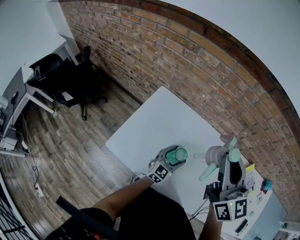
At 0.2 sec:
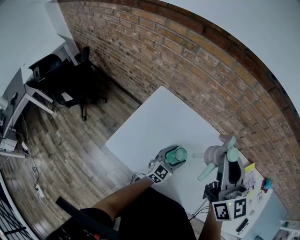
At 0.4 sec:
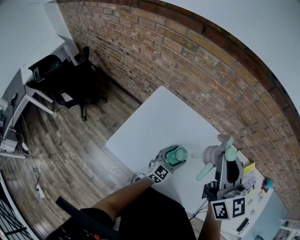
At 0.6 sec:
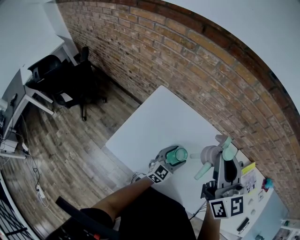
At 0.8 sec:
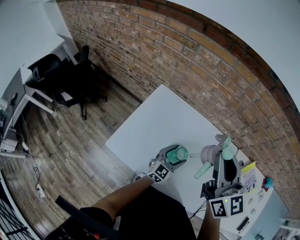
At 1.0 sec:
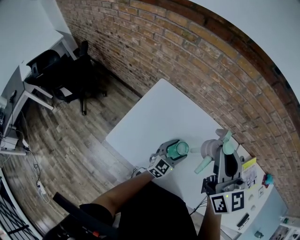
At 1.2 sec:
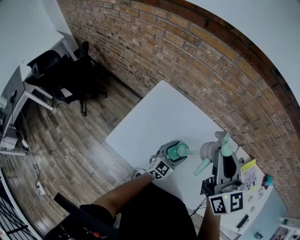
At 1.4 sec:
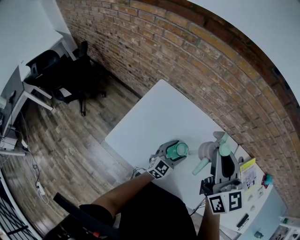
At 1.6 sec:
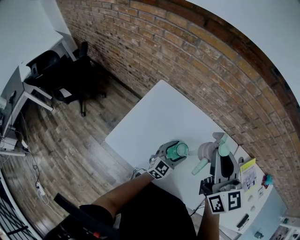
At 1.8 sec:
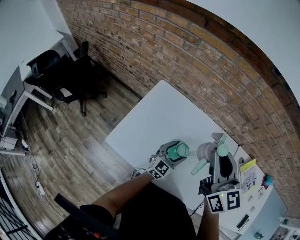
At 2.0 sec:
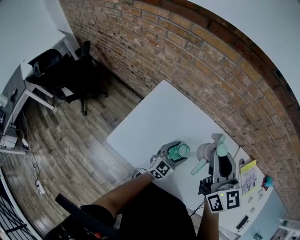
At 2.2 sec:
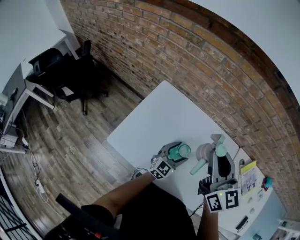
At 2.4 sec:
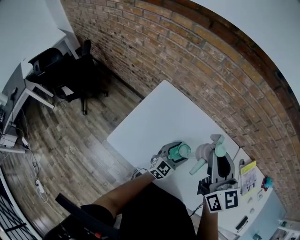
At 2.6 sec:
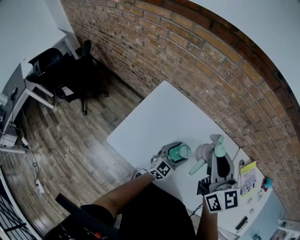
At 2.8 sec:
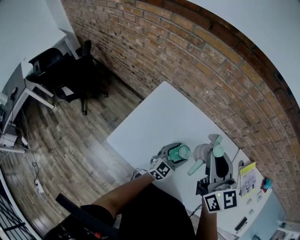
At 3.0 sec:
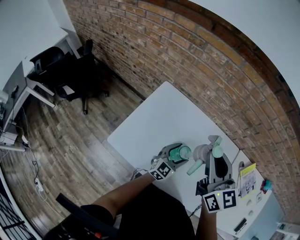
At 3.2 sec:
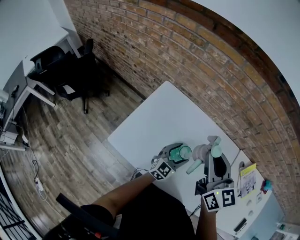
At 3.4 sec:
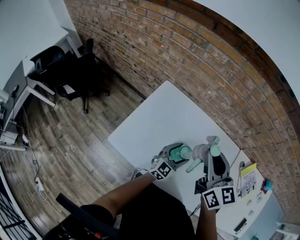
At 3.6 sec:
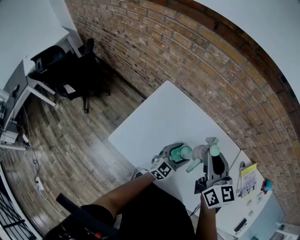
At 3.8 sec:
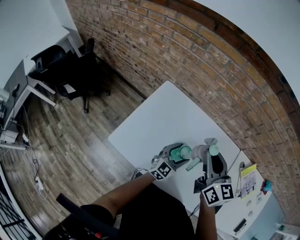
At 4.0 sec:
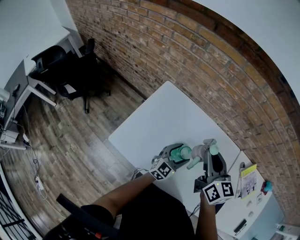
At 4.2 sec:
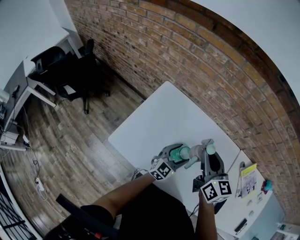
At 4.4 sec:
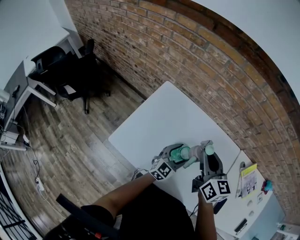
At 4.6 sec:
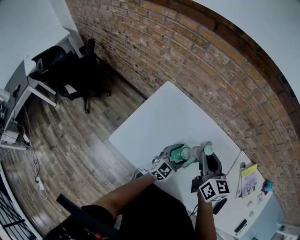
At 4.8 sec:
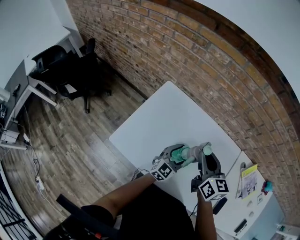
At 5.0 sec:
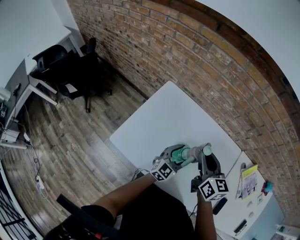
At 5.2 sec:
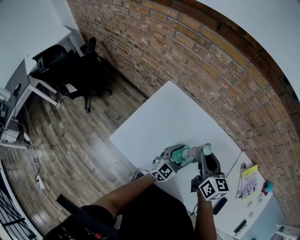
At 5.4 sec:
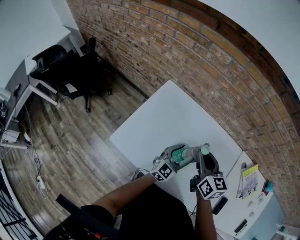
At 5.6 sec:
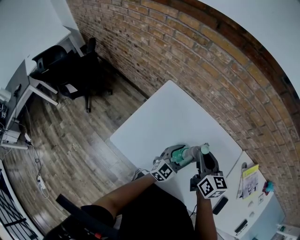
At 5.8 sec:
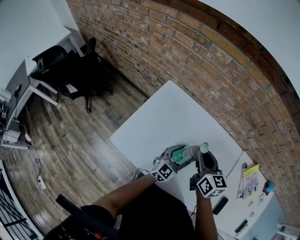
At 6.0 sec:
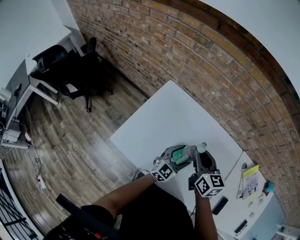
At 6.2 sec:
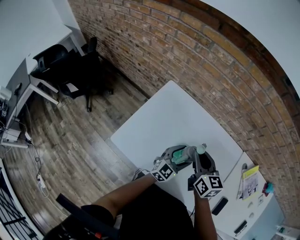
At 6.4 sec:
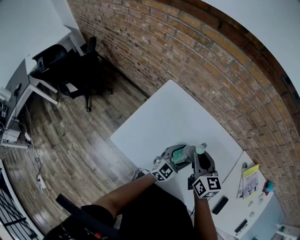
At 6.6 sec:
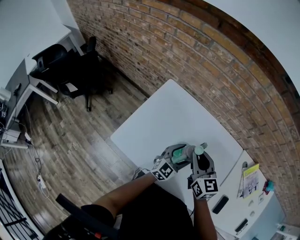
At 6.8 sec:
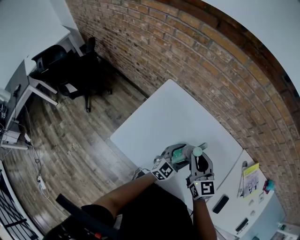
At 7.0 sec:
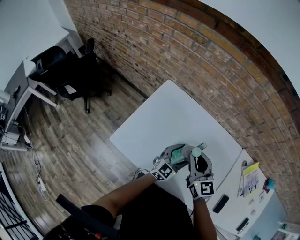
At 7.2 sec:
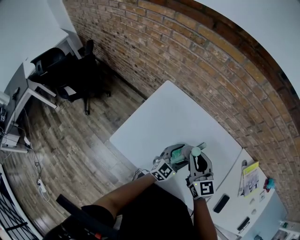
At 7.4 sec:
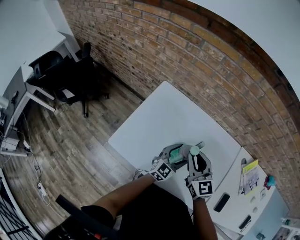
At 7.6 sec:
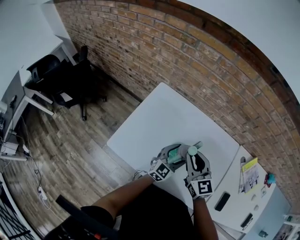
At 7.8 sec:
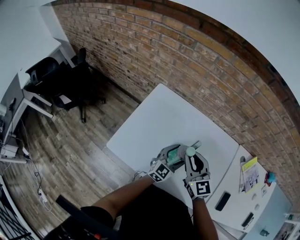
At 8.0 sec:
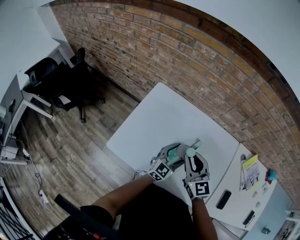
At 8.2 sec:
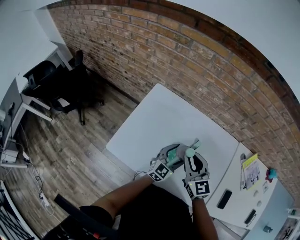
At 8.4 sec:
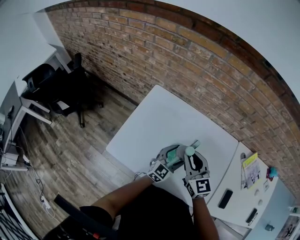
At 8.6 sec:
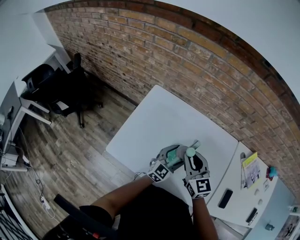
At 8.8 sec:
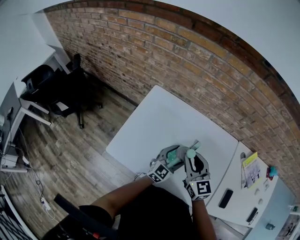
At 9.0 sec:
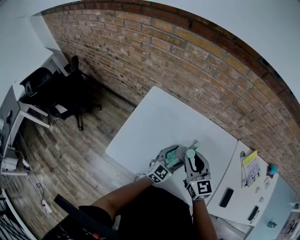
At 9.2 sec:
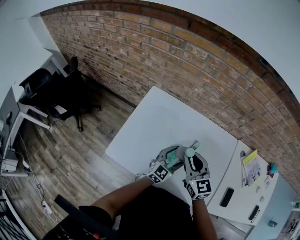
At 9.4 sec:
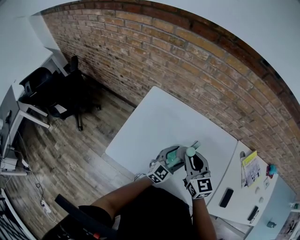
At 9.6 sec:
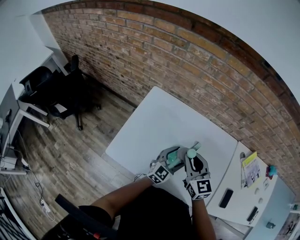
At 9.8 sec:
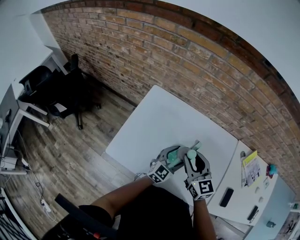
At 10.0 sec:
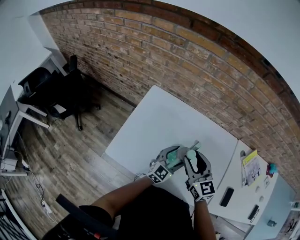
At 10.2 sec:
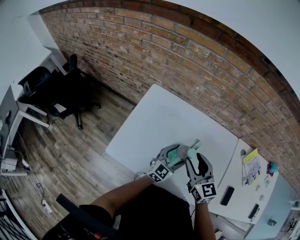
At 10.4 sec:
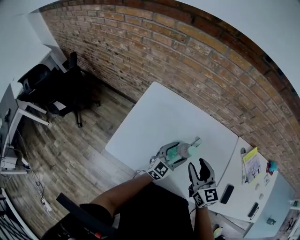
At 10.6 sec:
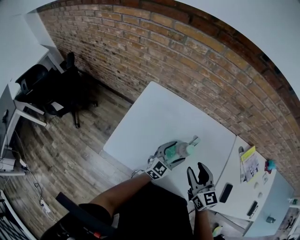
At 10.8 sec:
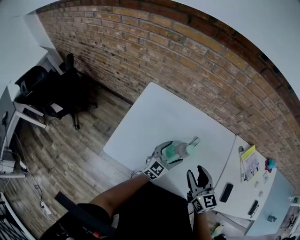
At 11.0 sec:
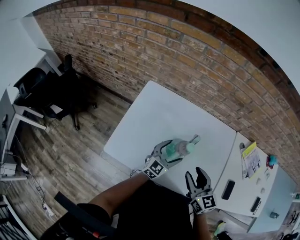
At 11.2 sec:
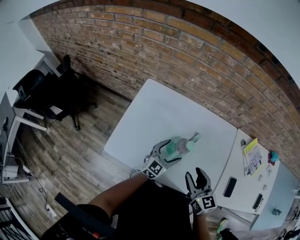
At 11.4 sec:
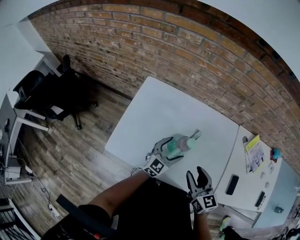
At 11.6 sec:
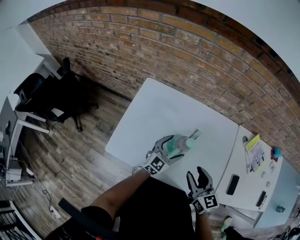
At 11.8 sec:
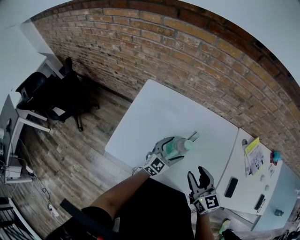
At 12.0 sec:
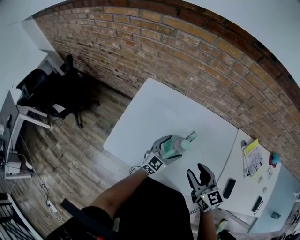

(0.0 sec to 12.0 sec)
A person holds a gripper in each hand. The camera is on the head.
0.0 sec - 1.6 sec: There are only small adjustments of the grippers.
1.6 sec - 3.0 sec: There are only small adjustments of the grippers.
3.0 sec - 4.4 sec: The right gripper moves downward, about 10 cm.
4.4 sec - 6.0 sec: The right gripper goes roughly 5 cm downward.
6.0 sec - 7.6 sec: The right gripper turns by roughly 20 degrees.
7.6 sec - 9.0 sec: The grippers move only a little.
9.0 sec - 10.4 sec: The right gripper changes place by some 5 cm.
10.4 sec - 12.0 sec: The right gripper shifts by roughly 5 cm.

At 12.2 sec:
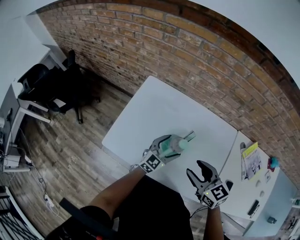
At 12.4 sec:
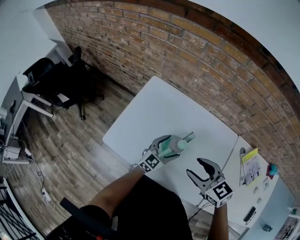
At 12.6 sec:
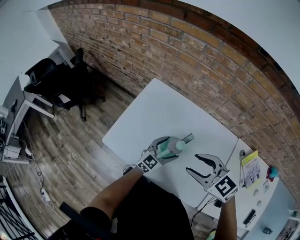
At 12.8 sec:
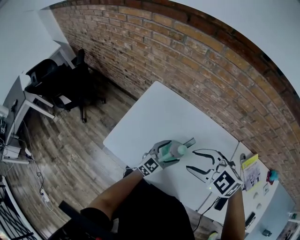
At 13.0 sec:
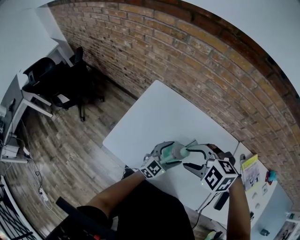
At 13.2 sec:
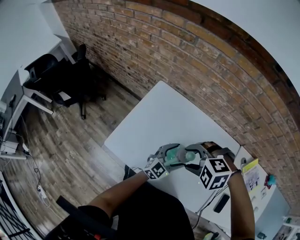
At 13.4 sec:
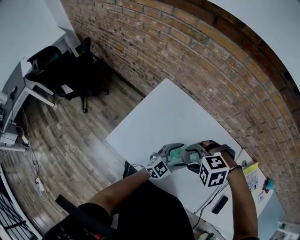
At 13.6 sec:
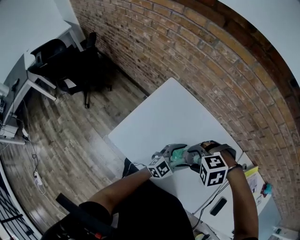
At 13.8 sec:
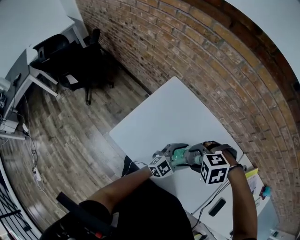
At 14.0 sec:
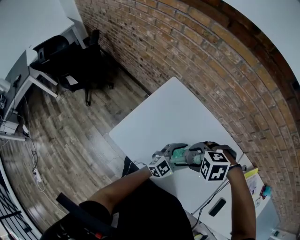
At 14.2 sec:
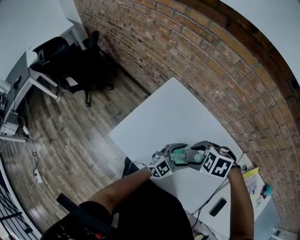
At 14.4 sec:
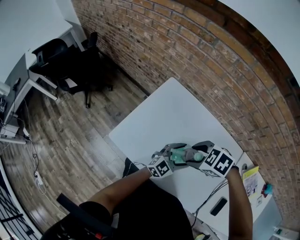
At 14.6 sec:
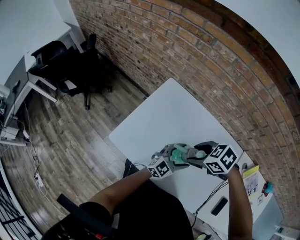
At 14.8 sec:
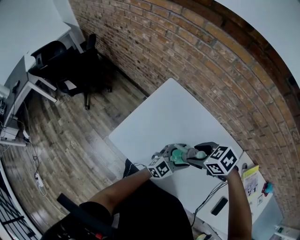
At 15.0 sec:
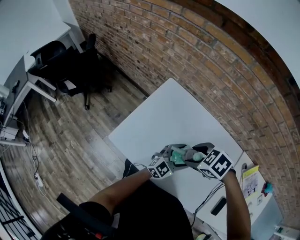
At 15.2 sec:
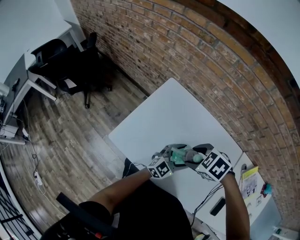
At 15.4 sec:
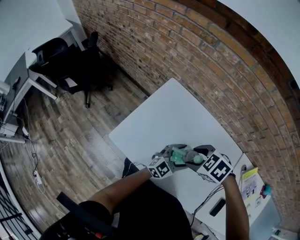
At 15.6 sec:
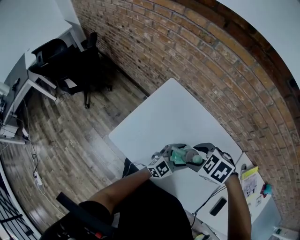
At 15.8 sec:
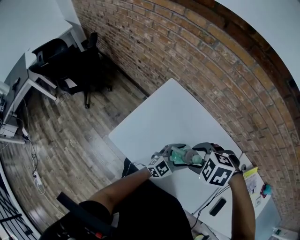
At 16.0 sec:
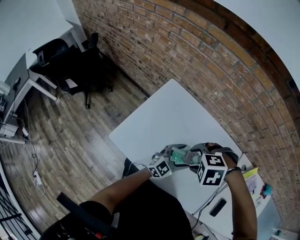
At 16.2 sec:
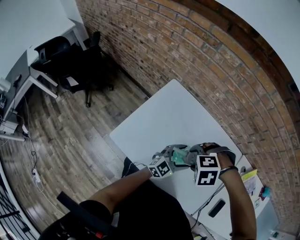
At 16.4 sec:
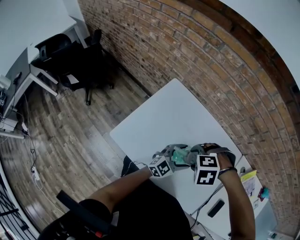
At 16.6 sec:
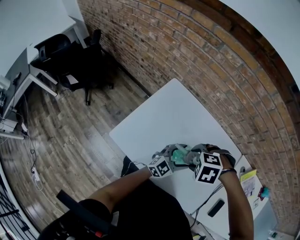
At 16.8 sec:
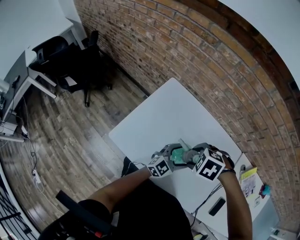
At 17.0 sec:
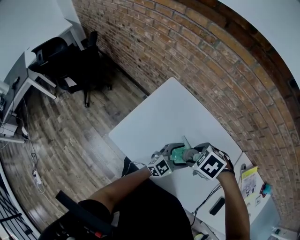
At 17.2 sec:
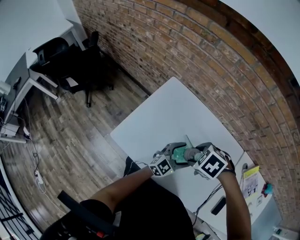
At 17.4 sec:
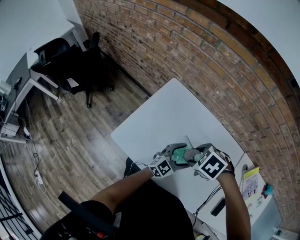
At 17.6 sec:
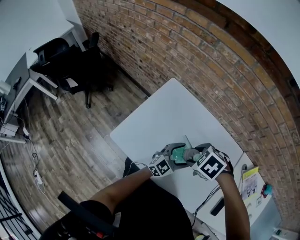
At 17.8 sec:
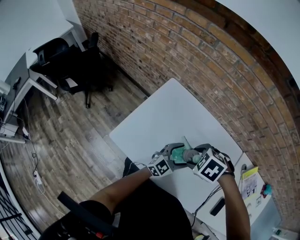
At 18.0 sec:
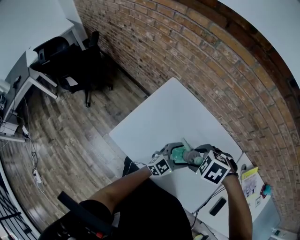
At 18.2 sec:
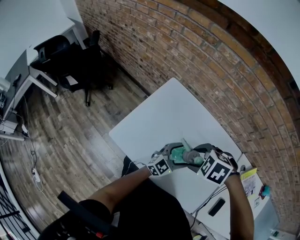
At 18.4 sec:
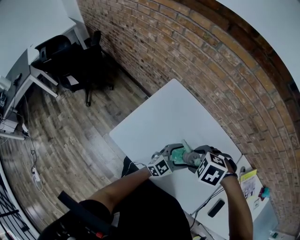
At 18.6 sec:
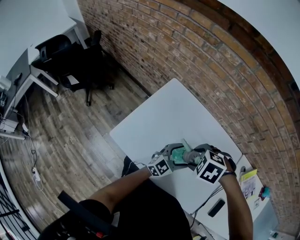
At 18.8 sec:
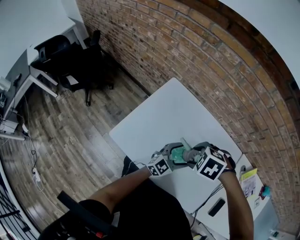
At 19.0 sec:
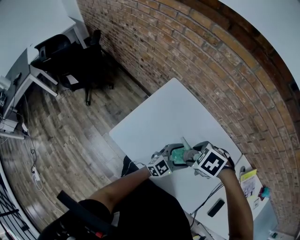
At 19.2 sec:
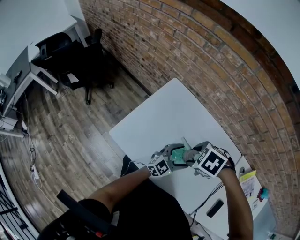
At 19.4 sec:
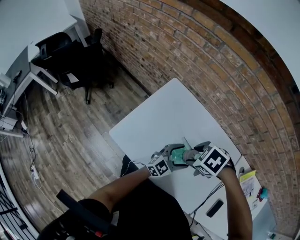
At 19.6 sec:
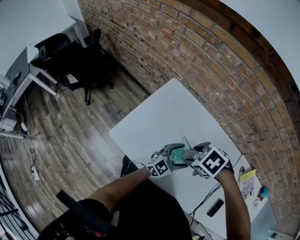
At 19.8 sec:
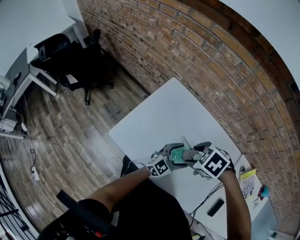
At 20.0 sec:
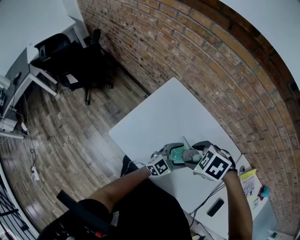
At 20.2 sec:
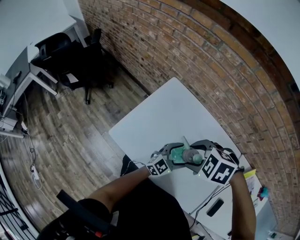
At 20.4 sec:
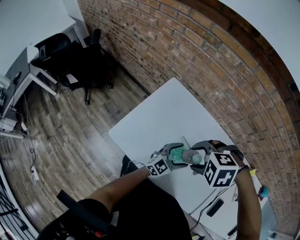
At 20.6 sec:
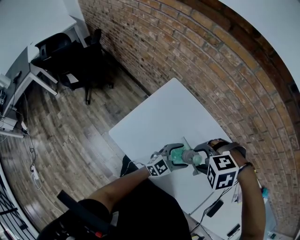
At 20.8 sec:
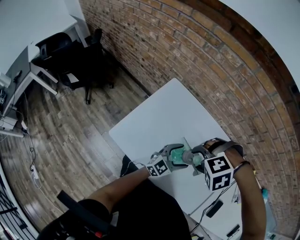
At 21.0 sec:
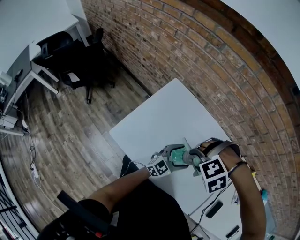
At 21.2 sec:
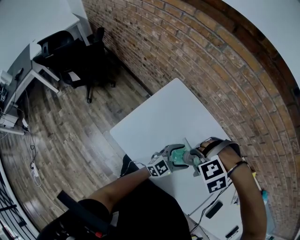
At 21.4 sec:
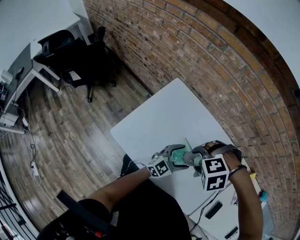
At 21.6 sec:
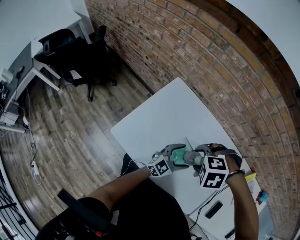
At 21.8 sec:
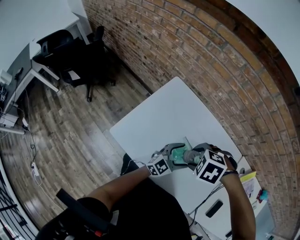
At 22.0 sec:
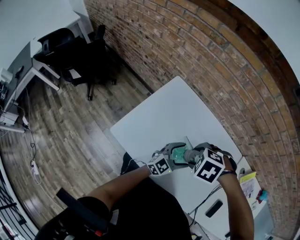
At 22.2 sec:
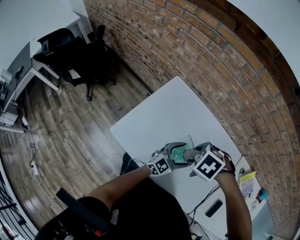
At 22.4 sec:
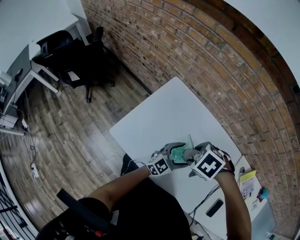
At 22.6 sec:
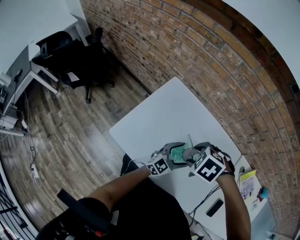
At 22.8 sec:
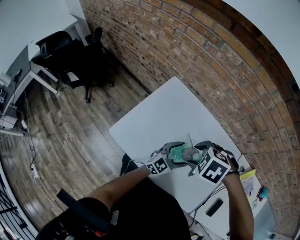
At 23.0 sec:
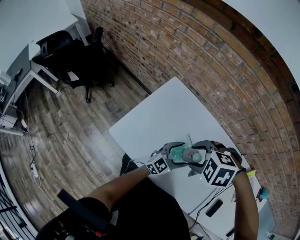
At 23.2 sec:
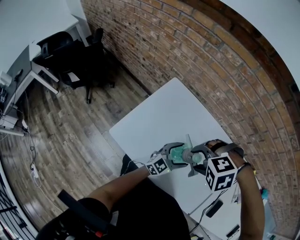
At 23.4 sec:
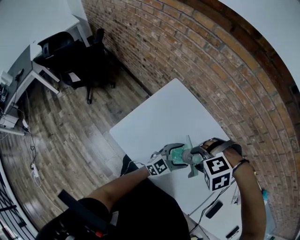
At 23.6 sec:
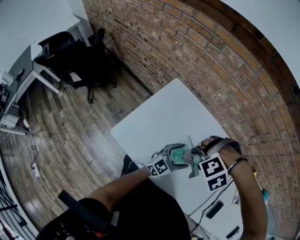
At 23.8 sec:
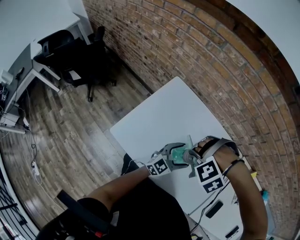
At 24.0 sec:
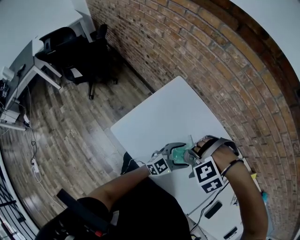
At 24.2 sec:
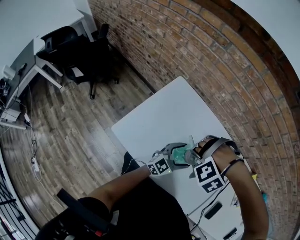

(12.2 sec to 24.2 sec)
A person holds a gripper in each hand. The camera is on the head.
12.2 sec - 13.8 sec: The right gripper changes place by some 10 cm, and points its fingers roughly 50 degrees further downward.
13.8 sec - 15.2 sec: The right gripper rolls clockwise, seen from behind, by approximately 40 degrees.
15.2 sec - 16.6 sec: The right gripper swivels roughly 30 degrees.
18.2 sec - 19.8 sec: There are only small adjustments of the grippers.
19.8 sec - 21.2 sec: The right gripper rolls counterclockwise, seen from behind, by approximately 70 degrees.
21.2 sec - 22.6 sec: The right gripper twists roughly 60 degrees clockwise, seen from behind.
22.6 sec - 24.2 sec: The right gripper twists about 70 degrees counterclockwise, seen from behind.
